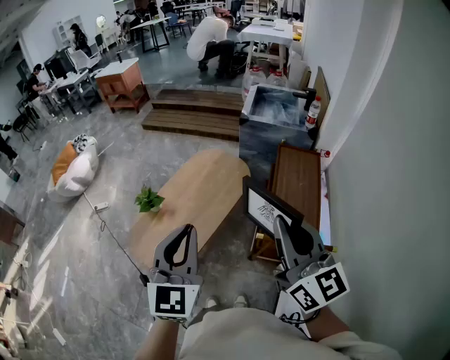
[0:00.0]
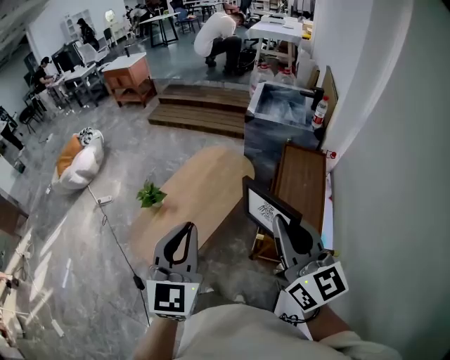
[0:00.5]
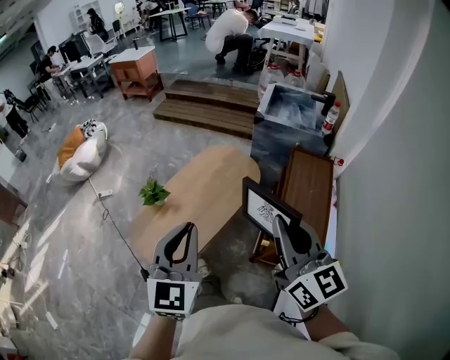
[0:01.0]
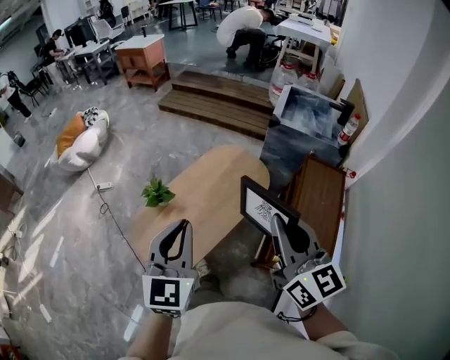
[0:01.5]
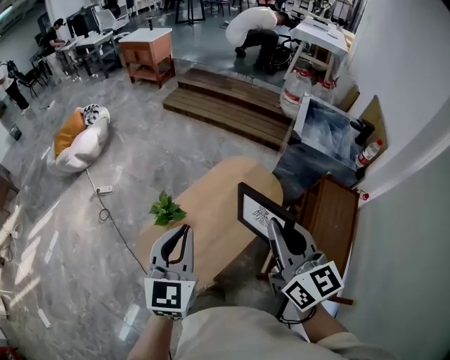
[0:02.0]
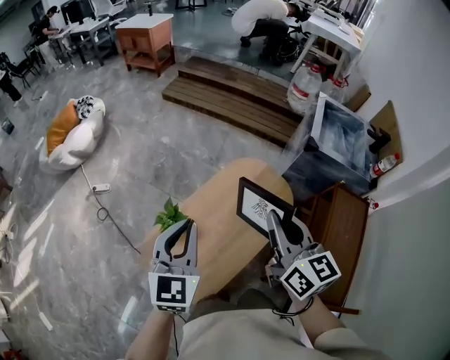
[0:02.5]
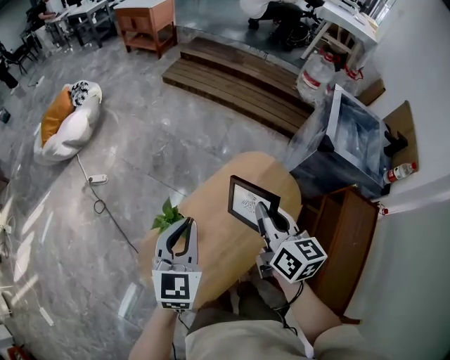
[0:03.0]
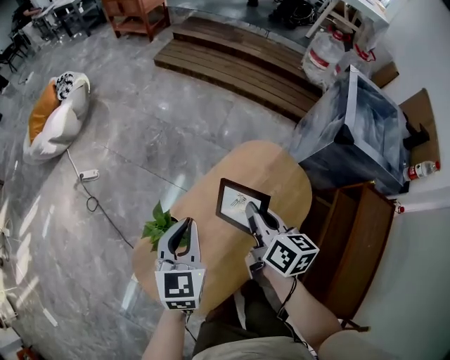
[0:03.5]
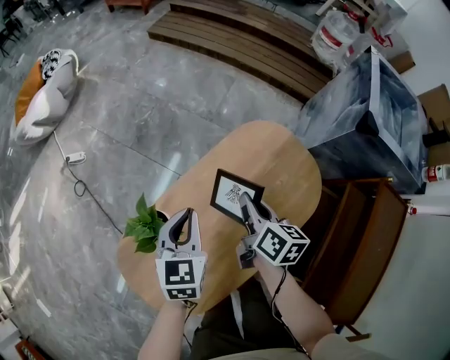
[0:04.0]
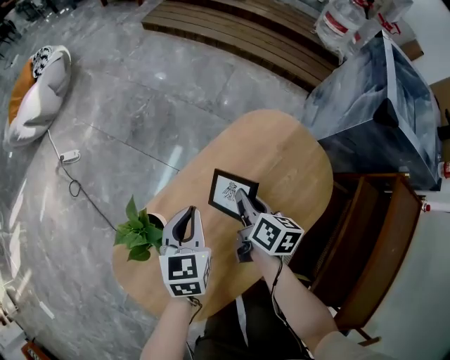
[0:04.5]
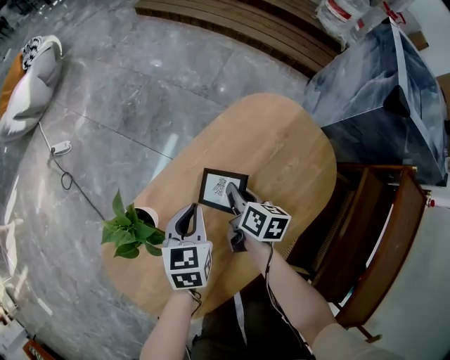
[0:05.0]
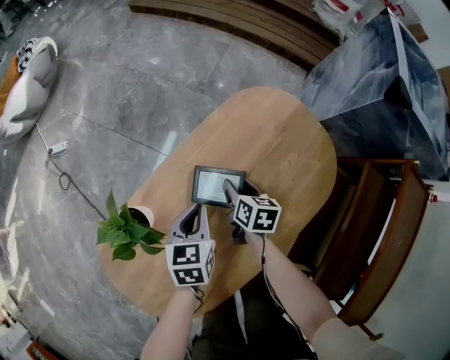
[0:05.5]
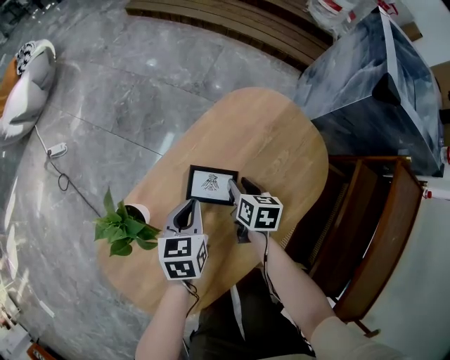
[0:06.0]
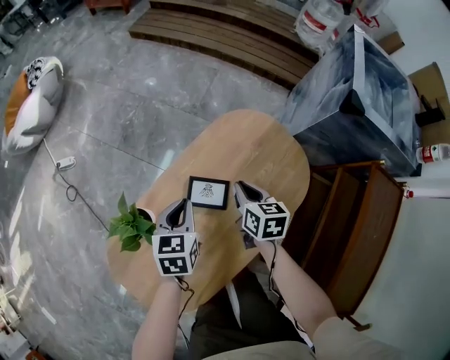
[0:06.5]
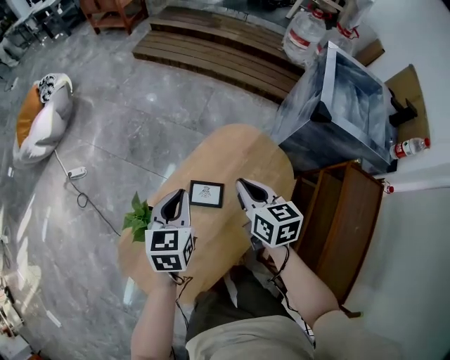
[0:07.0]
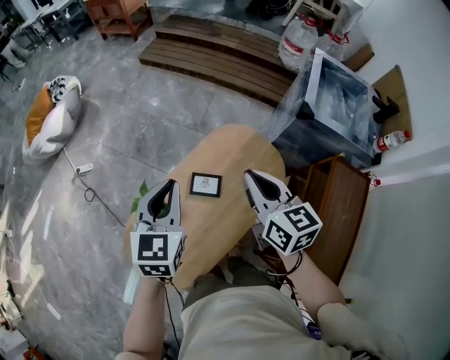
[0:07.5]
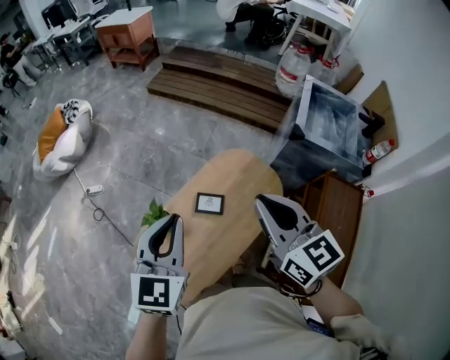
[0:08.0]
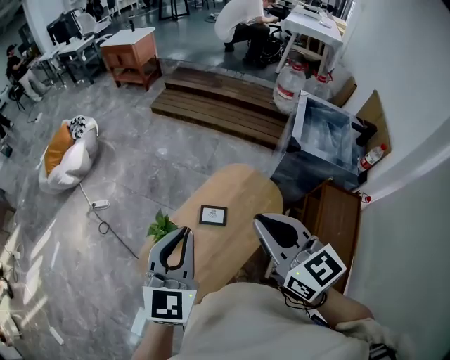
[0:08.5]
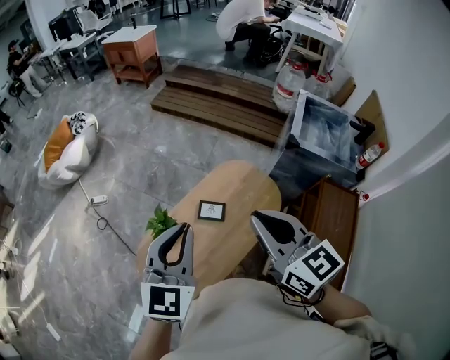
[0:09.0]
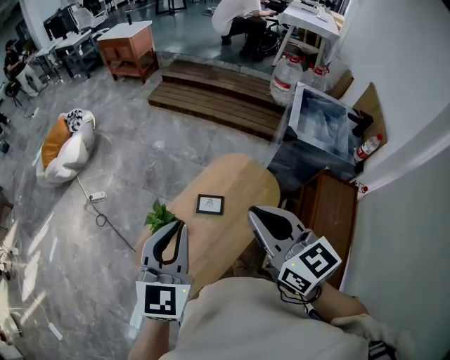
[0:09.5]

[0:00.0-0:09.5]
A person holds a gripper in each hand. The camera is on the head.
0:00.0 to 0:02.0: Both grippers move forward and to the left, some 30 cm.
0:02.0 to 0:04.0: Both grippers travel together downward and forward, about 50 cm. The right gripper turns by some 40 degrees, while the left gripper rotates approximately 30 degrees.
0:04.0 to 0:05.5: The grippers both shift downward by approximately 25 cm. The right gripper opens.
0:05.5 to 0:07.5: The grippers both shift upward by about 50 cm. The left gripper rotates about 30 degrees. The right gripper turns by about 40 degrees, and closes.
0:07.5 to 0:09.5: The right gripper travels upward and backward by approximately 25 cm. The left gripper goes about 20 cm backward and upward.

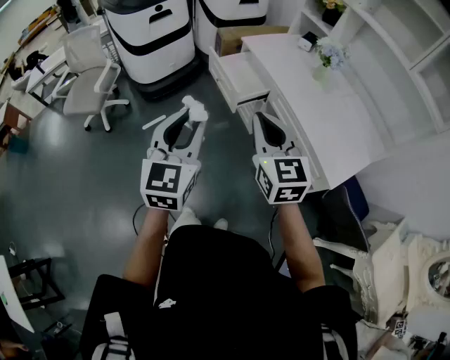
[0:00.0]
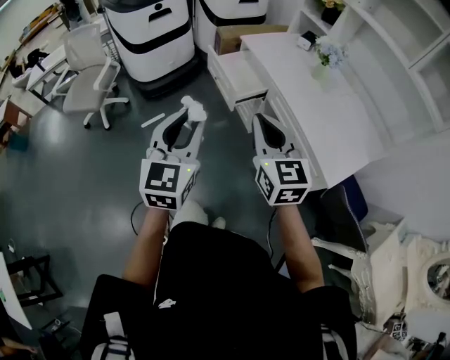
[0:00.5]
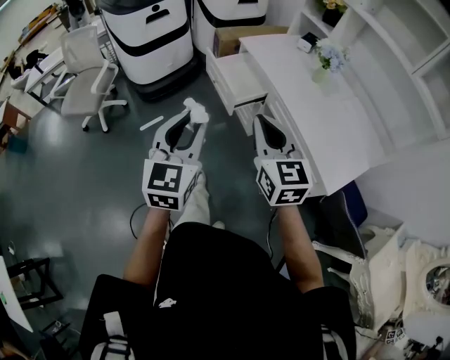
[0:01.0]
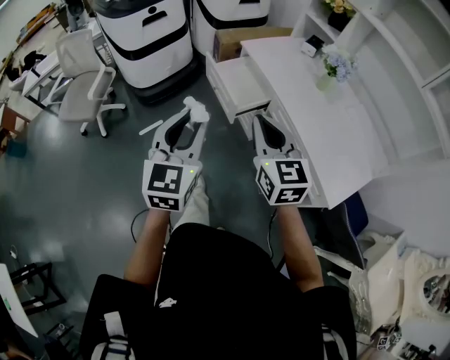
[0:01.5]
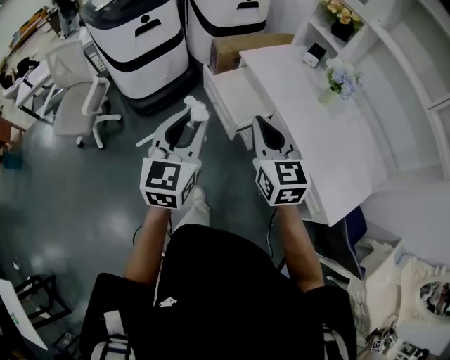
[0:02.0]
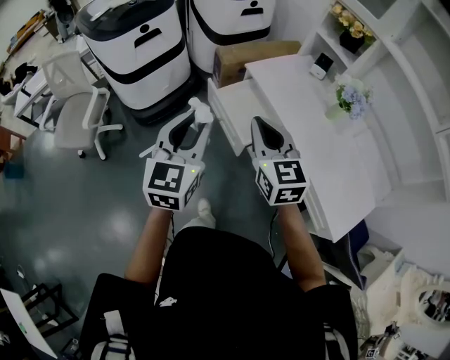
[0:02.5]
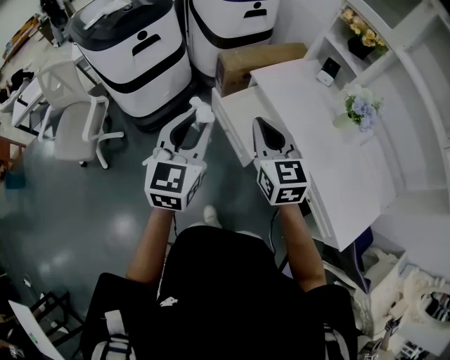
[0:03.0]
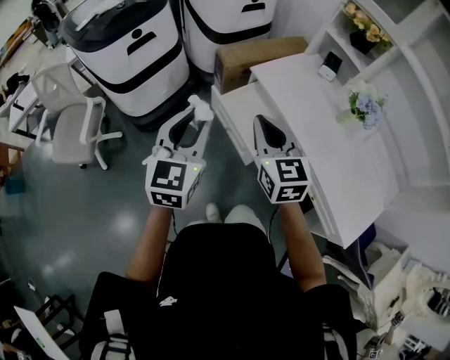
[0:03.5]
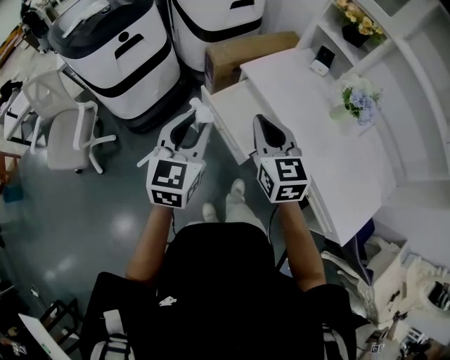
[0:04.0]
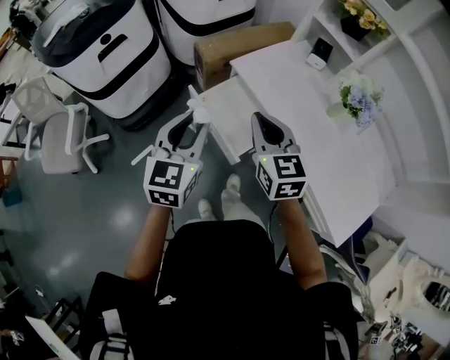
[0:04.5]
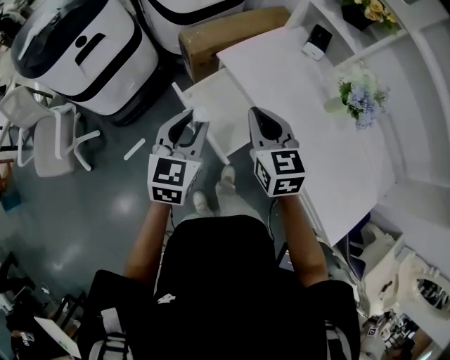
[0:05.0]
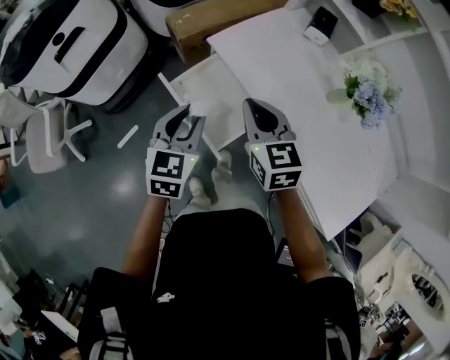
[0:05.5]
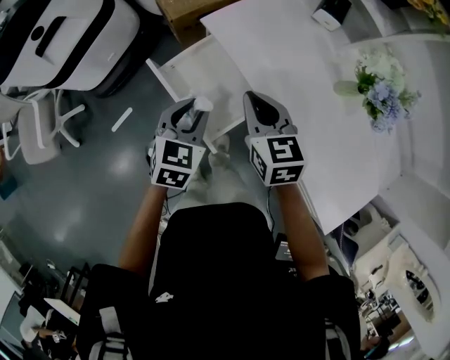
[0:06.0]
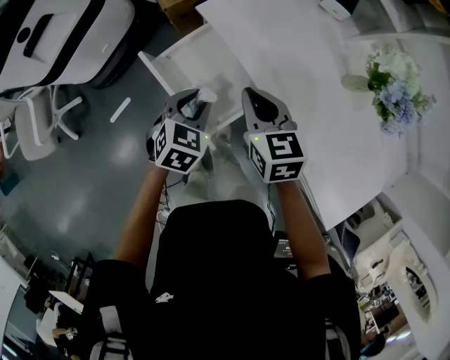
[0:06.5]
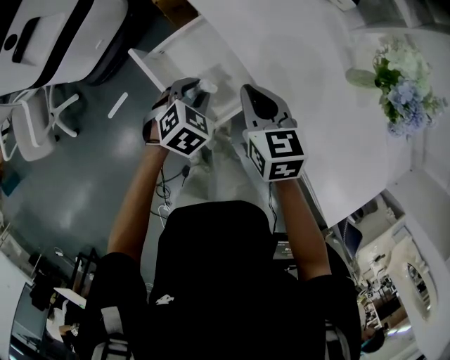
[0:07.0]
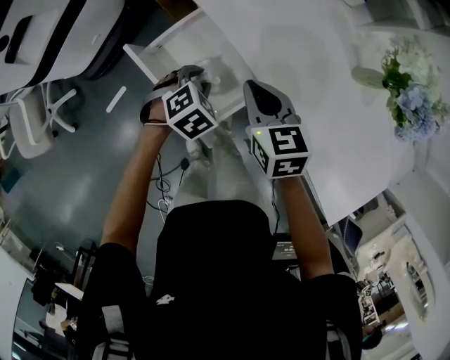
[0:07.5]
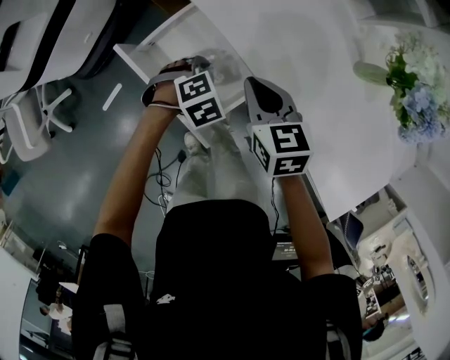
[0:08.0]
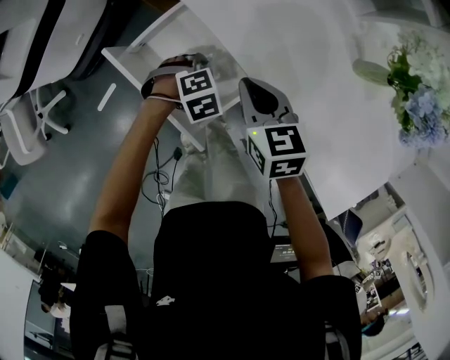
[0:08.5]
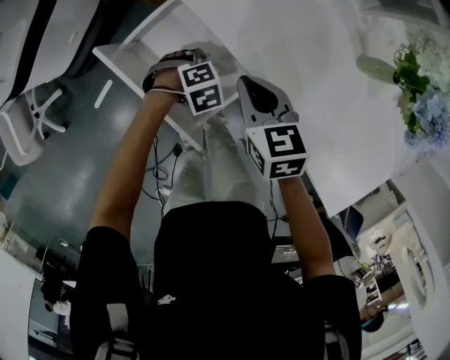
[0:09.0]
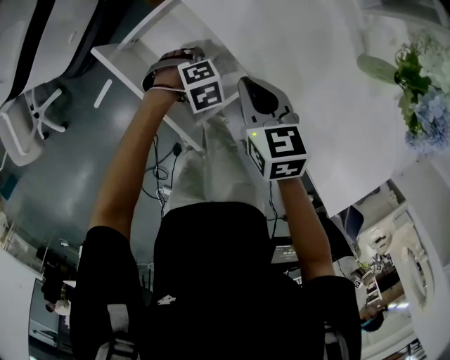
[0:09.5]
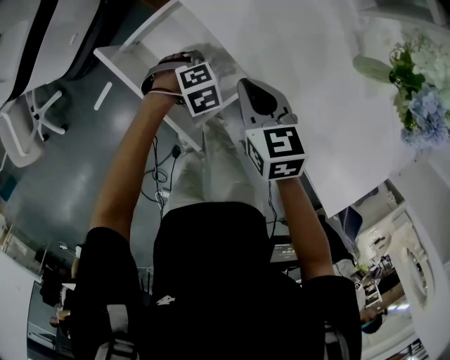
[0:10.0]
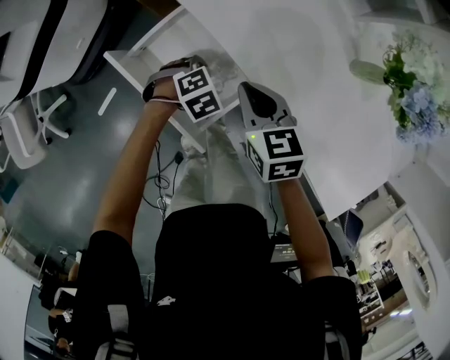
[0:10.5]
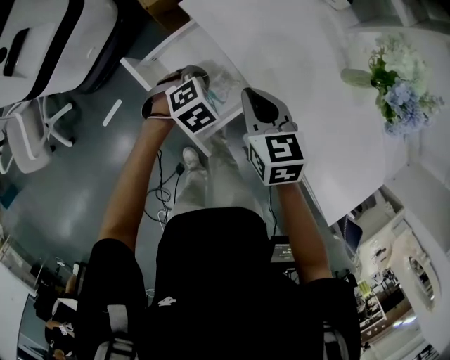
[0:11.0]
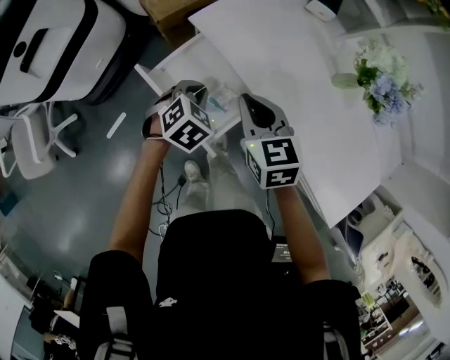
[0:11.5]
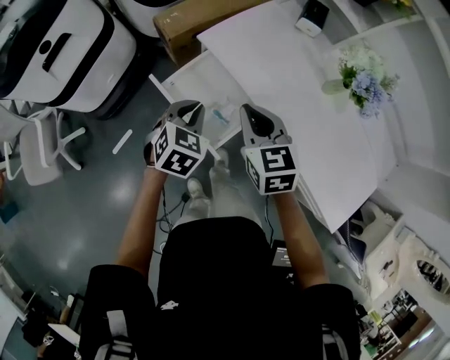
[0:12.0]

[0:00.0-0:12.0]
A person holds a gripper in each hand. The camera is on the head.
0:00.0 to 0:02.0: The two grippers go some 20 cm forward.
0:02.0 to 0:04.0: The two grippers go approximately 20 cm forward.
0:04.0 to 0:06.0: Both grippers move downward, forward and to the right, roughly 30 cm. The left gripper changes its angle by approximately 30 degrees, while the right gripper rotates roughly 20 degrees.
0:06.0 to 0:08.0: The right gripper moves downward, some 10 cm. The left gripper moves downward, some 20 cm, and tips its fingers downward by some 30 degrees.
0:08.0 to 0:10.0: The left gripper shifts roughly 5 cm downward.
0:10.0 to 0:12.0: The left gripper travels upward by roughly 30 cm, angles its fingers upward, by about 30 degrees, and closes its fingers. Meanwhile the right gripper moves upward, about 20 cm.

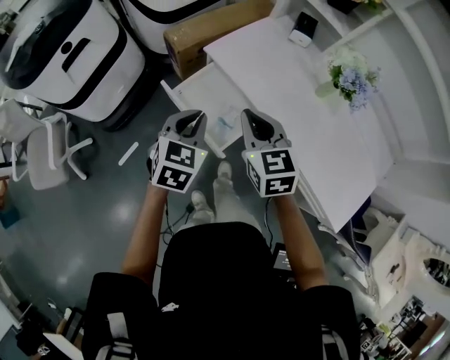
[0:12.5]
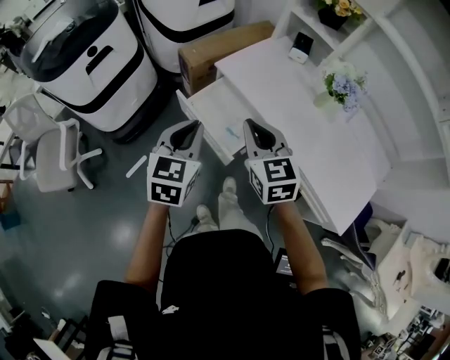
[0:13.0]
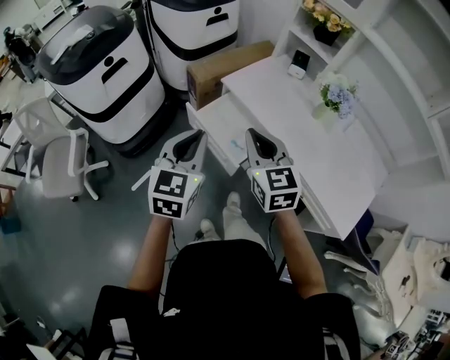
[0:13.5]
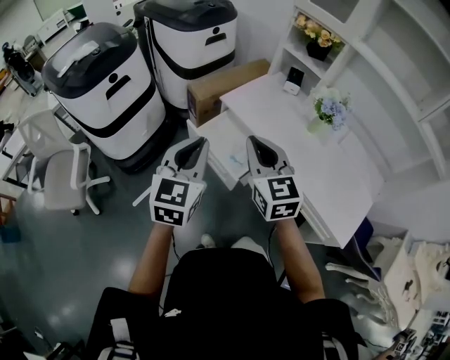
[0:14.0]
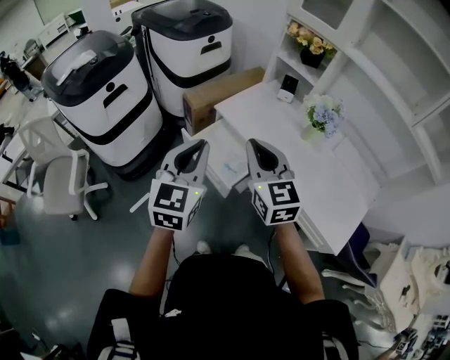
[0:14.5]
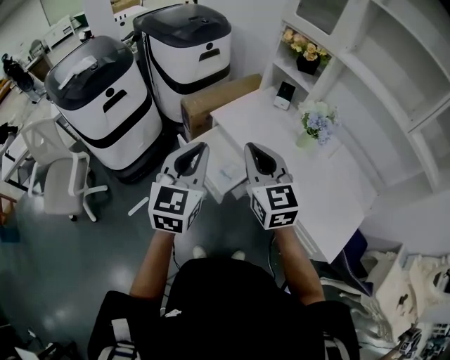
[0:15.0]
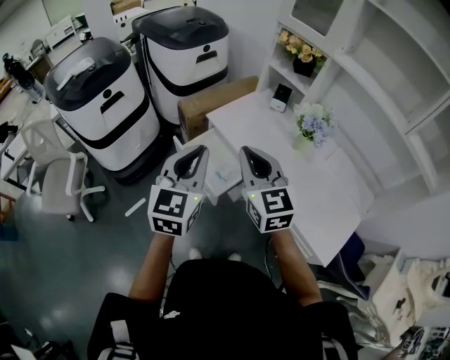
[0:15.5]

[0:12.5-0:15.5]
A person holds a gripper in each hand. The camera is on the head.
0:12.5 to 0:14.0: Both grippers move upward and backward, about 20 cm. The left gripper rotates about 30 degrees.
0:14.0 to 0:15.5: Both grippers travel together to the right, some 5 cm.

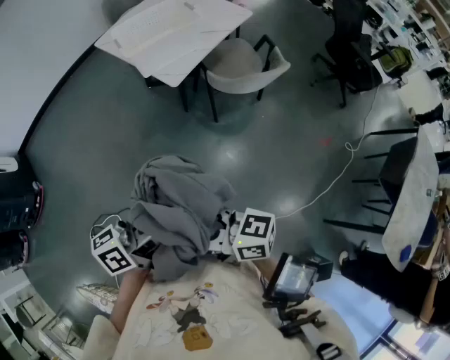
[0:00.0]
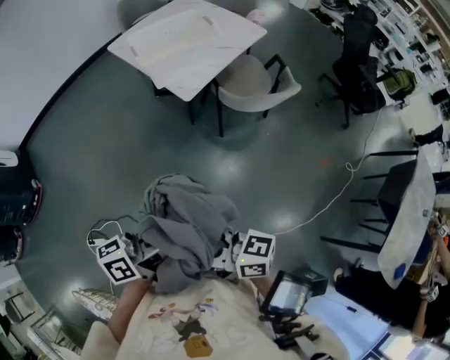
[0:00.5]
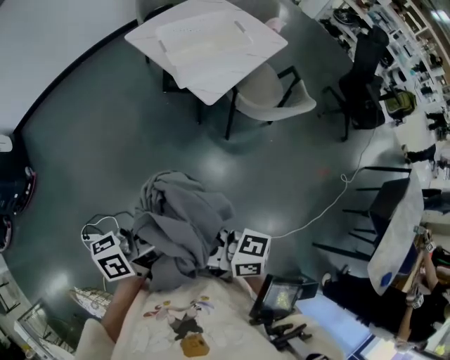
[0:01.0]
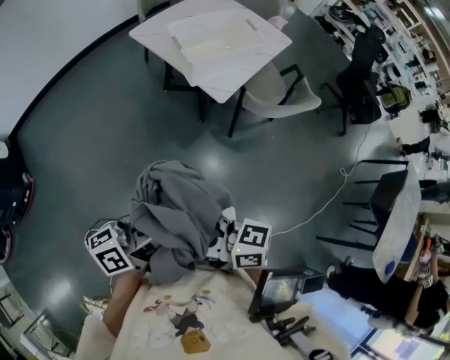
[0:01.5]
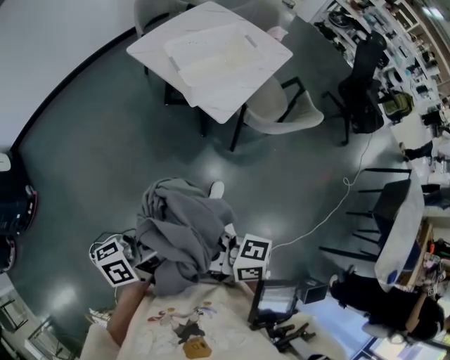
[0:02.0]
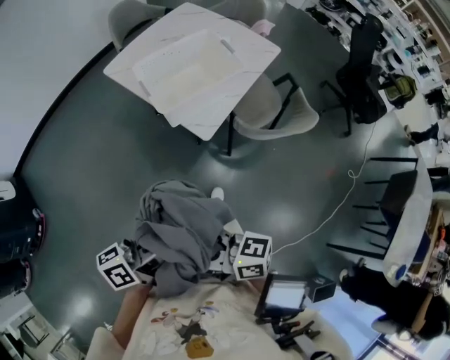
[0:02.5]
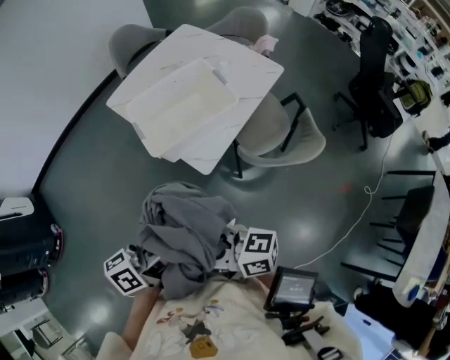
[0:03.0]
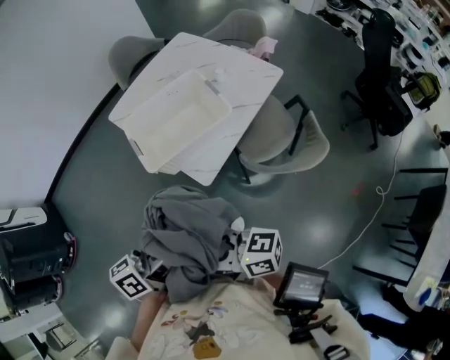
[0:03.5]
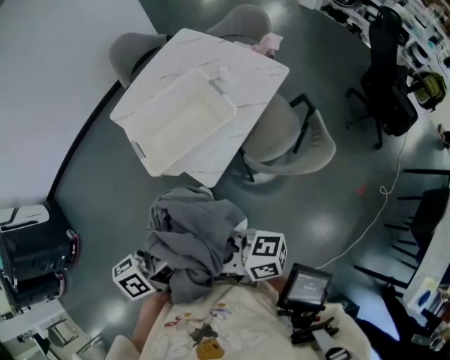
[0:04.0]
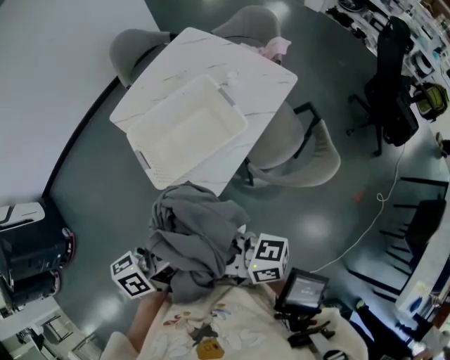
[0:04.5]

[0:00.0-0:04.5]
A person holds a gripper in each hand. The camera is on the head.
0:00.0 to 0:02.0: The two grippers go roughly 25 cm to the left and forward.
0:02.0 to 0:04.5: Both grippers move forward and to the right, some 35 cm.
